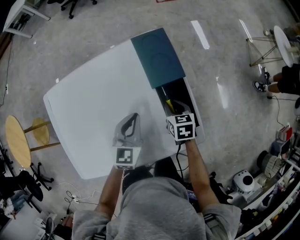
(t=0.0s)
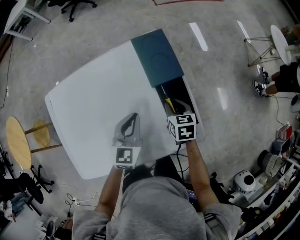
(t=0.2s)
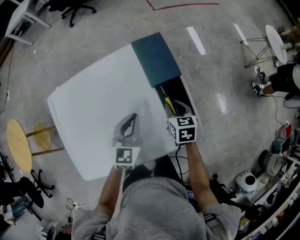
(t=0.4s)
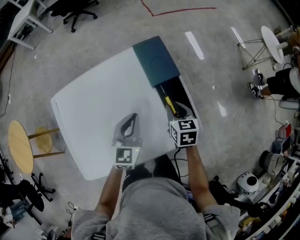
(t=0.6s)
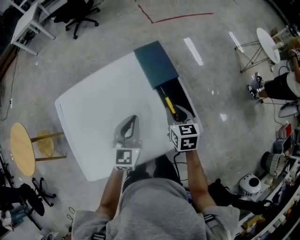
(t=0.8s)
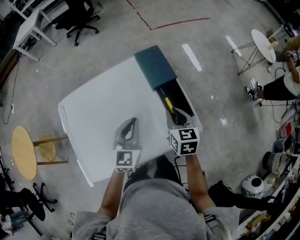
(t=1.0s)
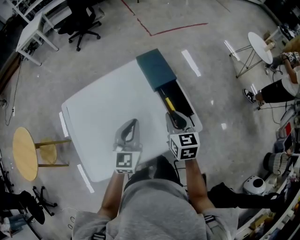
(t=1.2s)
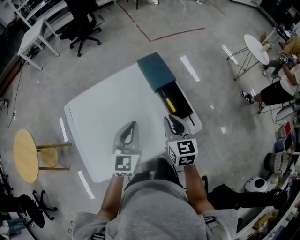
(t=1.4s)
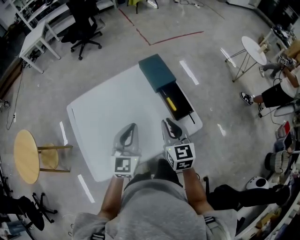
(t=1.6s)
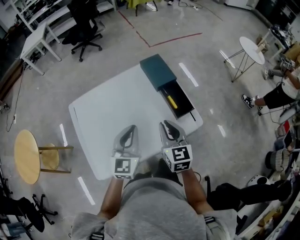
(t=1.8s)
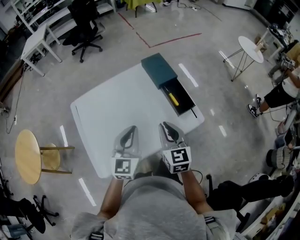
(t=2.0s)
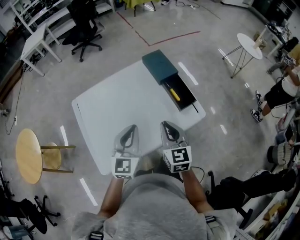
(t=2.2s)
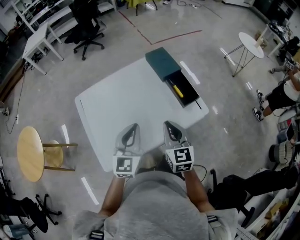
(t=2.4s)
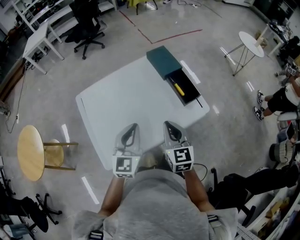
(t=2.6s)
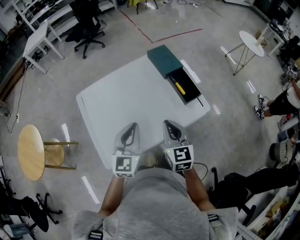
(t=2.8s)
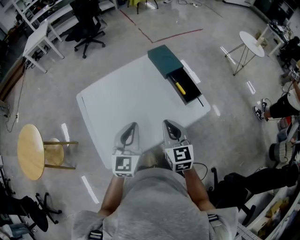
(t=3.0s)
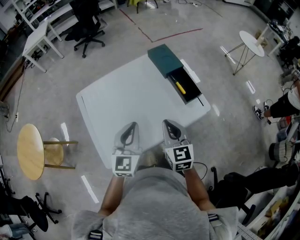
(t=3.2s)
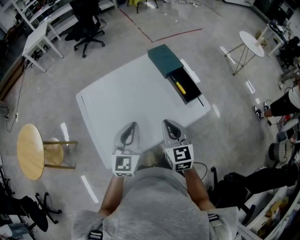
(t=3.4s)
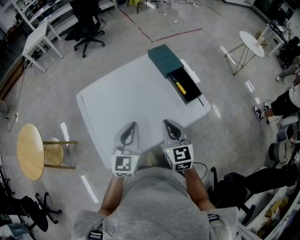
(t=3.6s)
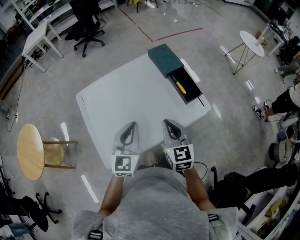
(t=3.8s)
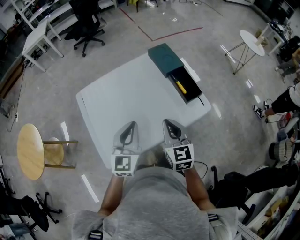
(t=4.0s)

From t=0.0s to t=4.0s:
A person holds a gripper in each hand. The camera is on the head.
From t=0.0s to t=1.4s: The grippers both shift upward and backward by some 25 cm. The right gripper changes its angle by about 30 degrees.
From t=1.4s to t=2.6s: The two grippers go some 15 cm backward and to the left.
From t=2.6s to t=4.0s: The grippers move only a little.

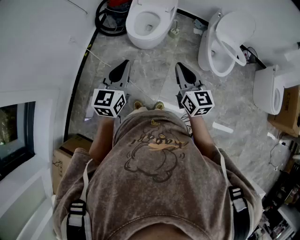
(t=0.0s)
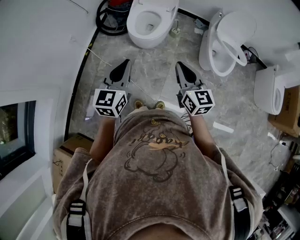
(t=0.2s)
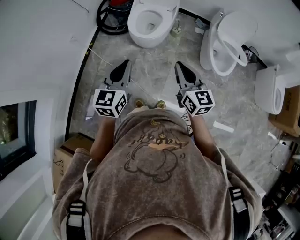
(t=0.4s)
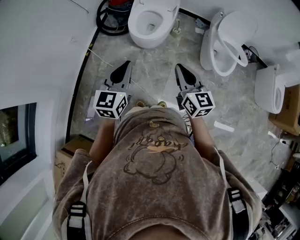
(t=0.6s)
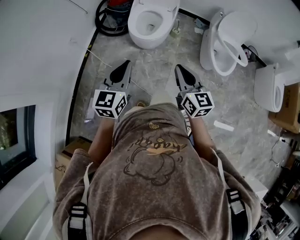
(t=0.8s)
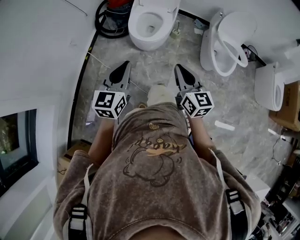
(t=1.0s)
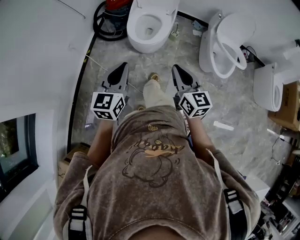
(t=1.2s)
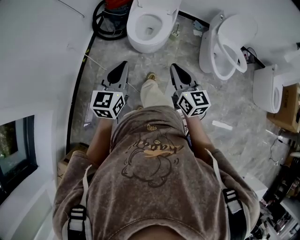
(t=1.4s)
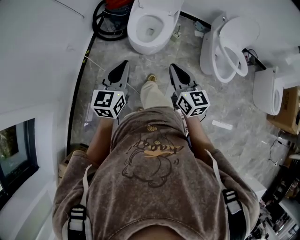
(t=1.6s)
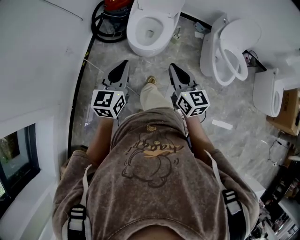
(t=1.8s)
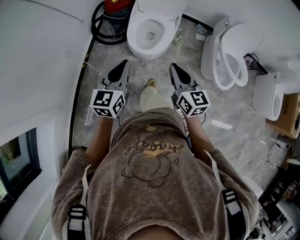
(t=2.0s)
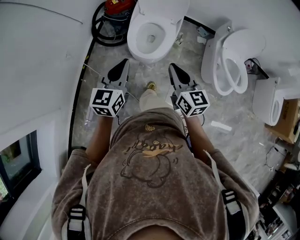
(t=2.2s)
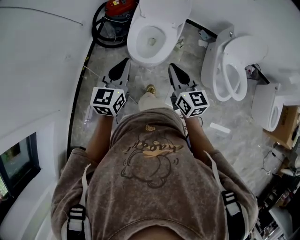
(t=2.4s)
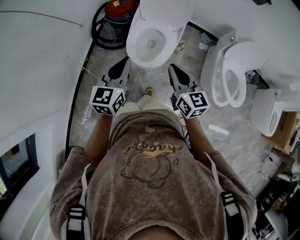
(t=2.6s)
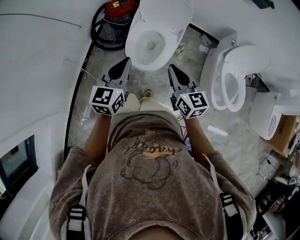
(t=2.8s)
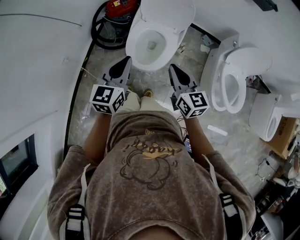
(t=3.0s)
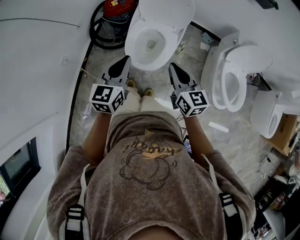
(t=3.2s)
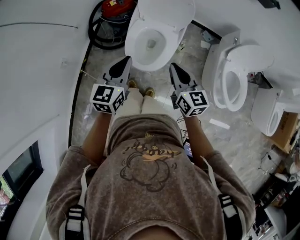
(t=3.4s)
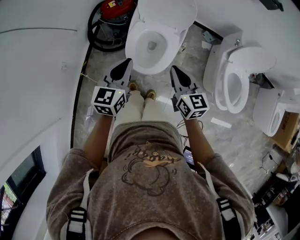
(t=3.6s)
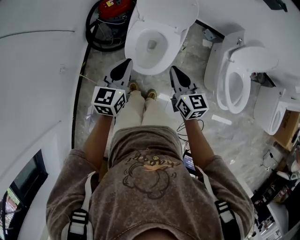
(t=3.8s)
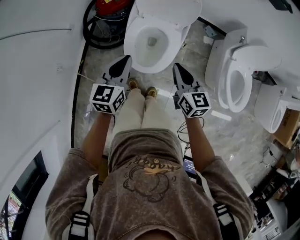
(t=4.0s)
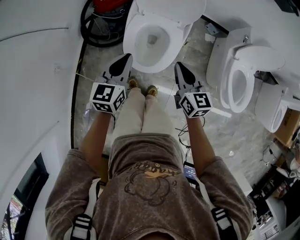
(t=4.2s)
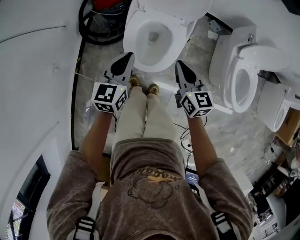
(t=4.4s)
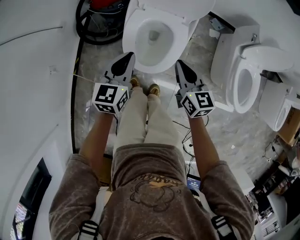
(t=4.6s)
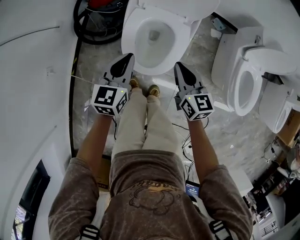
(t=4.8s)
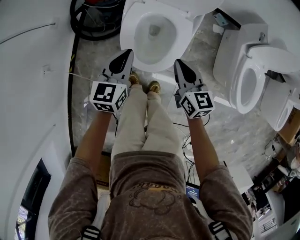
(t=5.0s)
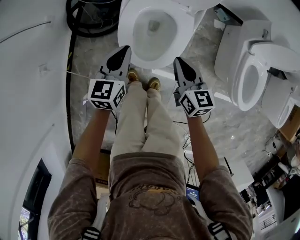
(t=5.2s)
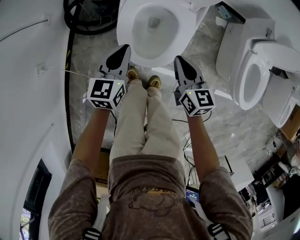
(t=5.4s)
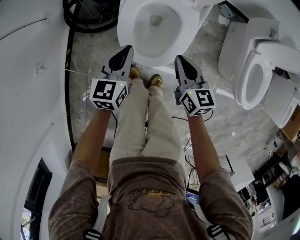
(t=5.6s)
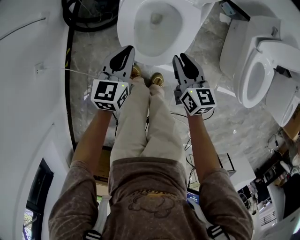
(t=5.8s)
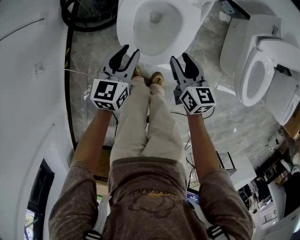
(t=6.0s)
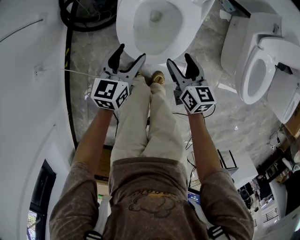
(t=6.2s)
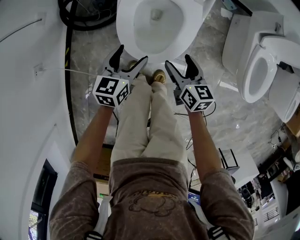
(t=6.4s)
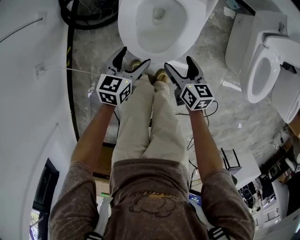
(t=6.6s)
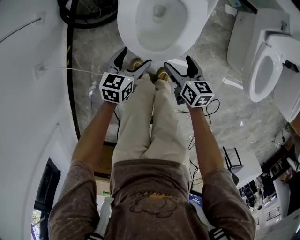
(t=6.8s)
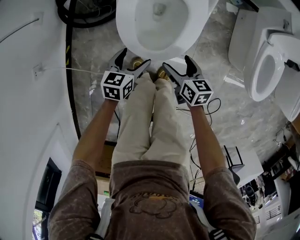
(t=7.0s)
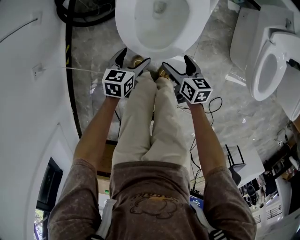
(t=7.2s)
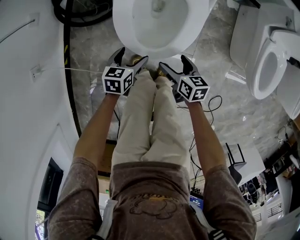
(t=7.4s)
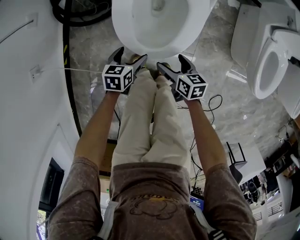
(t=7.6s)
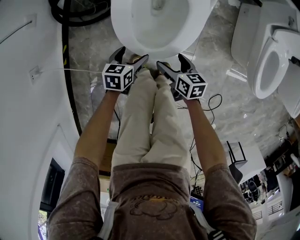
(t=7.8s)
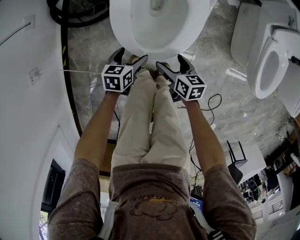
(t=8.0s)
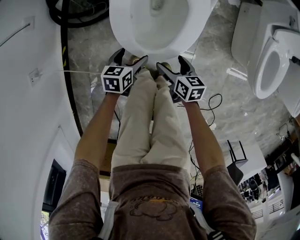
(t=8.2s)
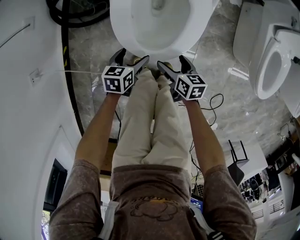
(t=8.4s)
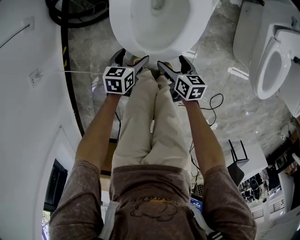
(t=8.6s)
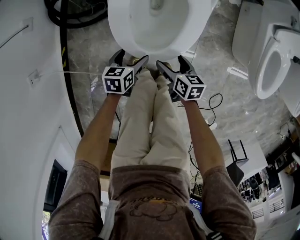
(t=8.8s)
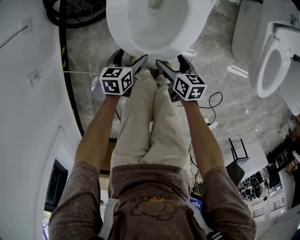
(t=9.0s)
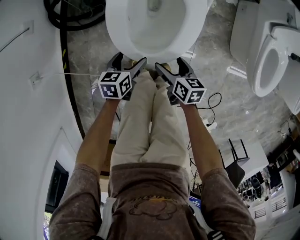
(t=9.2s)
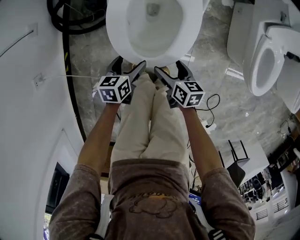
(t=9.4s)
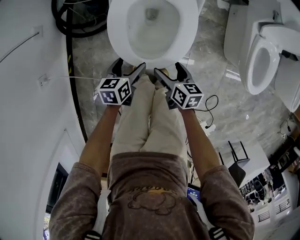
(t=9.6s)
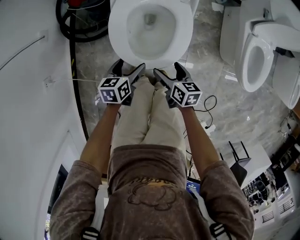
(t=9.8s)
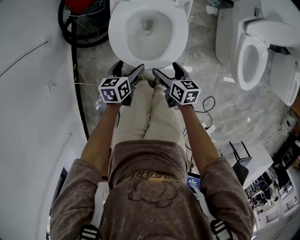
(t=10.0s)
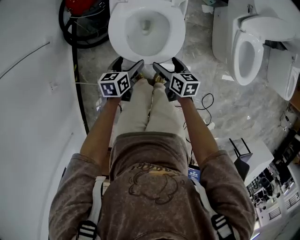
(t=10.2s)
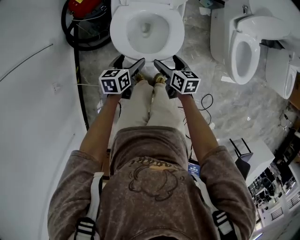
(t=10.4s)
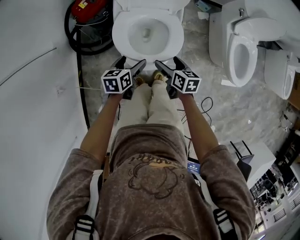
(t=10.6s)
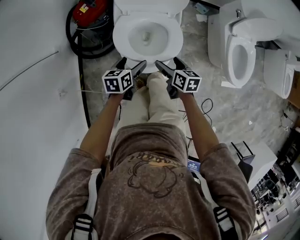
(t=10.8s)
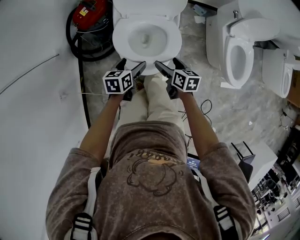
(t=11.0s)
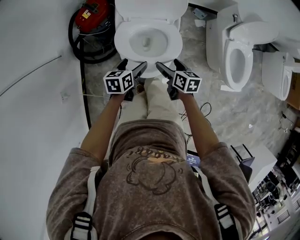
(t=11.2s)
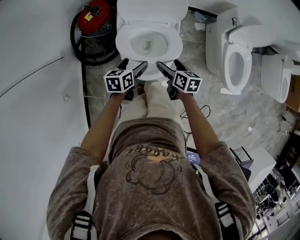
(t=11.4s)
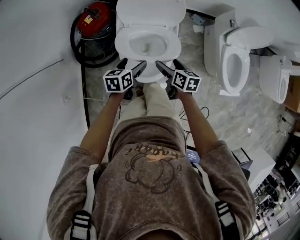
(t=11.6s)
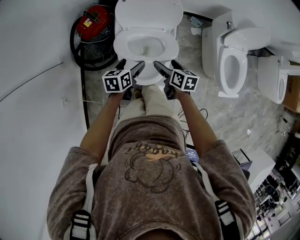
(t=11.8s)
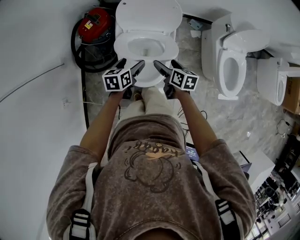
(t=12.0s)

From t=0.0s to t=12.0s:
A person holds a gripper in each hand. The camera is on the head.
From t=0.0s to t=1.6s: Both grippers move forward and to the left, some 10 cm.
From t=1.6s to t=3.0s: Both grippers move forward, about 25 cm.
From t=3.0s to t=4.4s: Both grippers move downward and forward, roughly 15 cm.
From t=4.4s to t=6.0s: Both grippers move downward, about 15 cm. The right gripper opens up.
From t=6.0s to t=7.6s: The right gripper moves downward and backward, about 20 cm, rotates about 20 degrees, and opens. The left gripper is displaced downward by roughly 20 cm, turns by approximately 30 degrees, and opens.
From t=7.6s to t=9.0s: There are only small adjustments of the grippers.
From t=9.0s to t=10.4s: Both grippers move upward, about 20 cm.
From t=10.4s to t=12.0s: The two grippers go about 15 cm forward and upward.

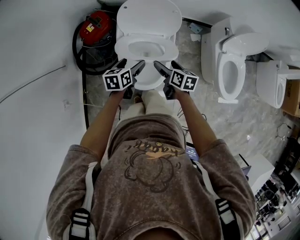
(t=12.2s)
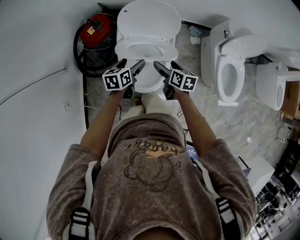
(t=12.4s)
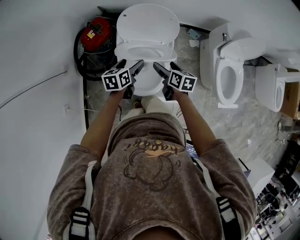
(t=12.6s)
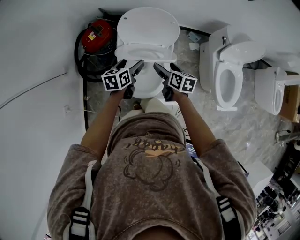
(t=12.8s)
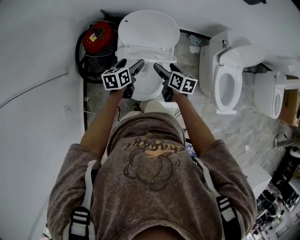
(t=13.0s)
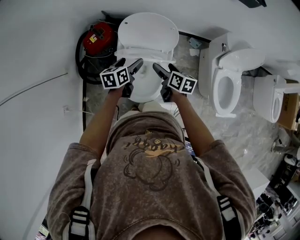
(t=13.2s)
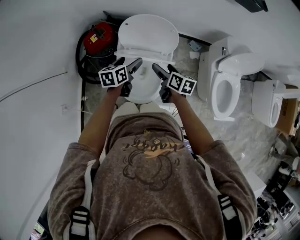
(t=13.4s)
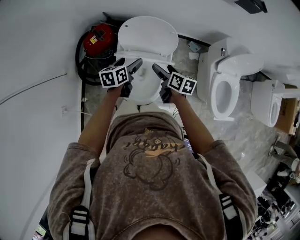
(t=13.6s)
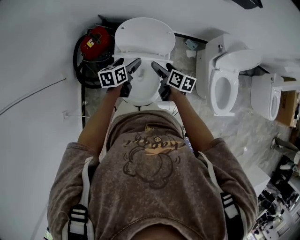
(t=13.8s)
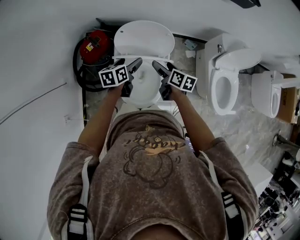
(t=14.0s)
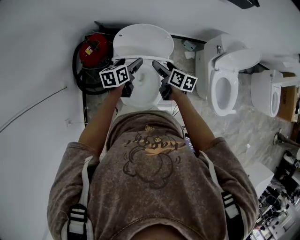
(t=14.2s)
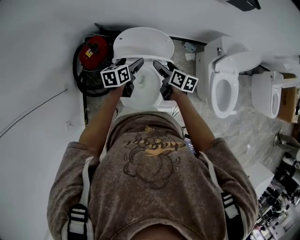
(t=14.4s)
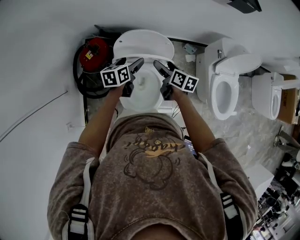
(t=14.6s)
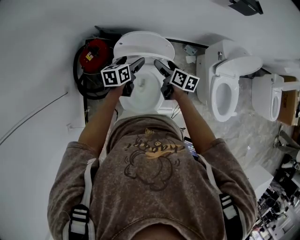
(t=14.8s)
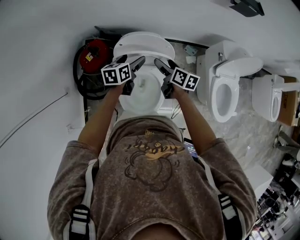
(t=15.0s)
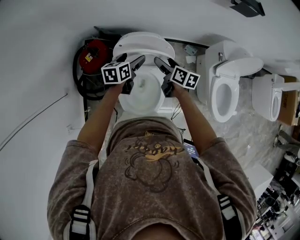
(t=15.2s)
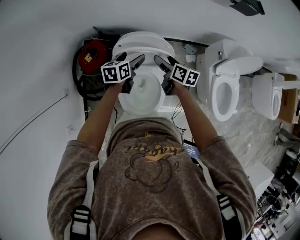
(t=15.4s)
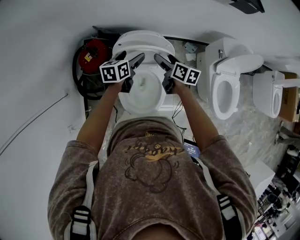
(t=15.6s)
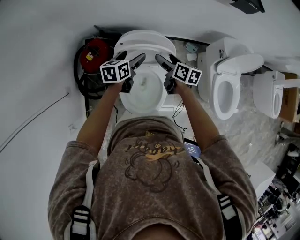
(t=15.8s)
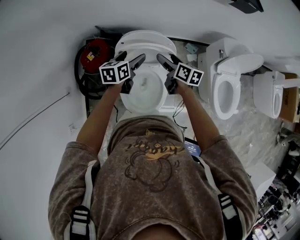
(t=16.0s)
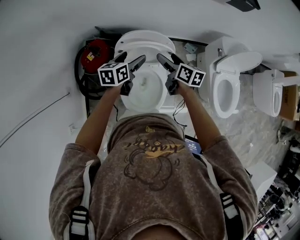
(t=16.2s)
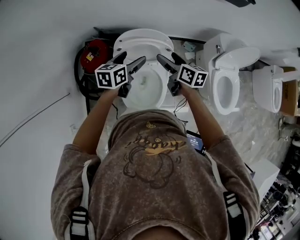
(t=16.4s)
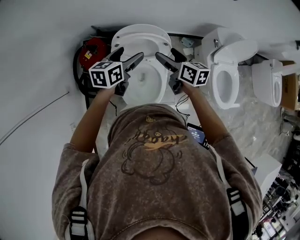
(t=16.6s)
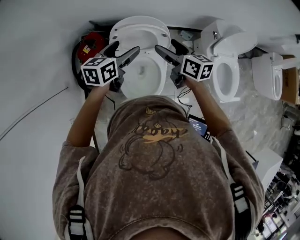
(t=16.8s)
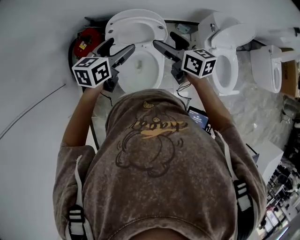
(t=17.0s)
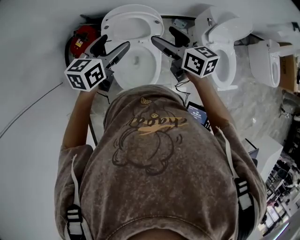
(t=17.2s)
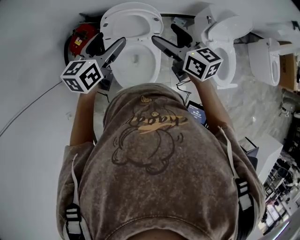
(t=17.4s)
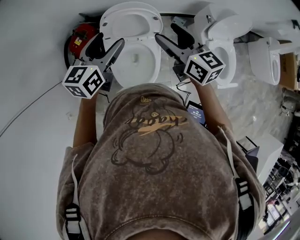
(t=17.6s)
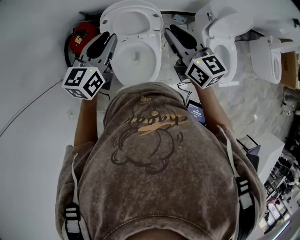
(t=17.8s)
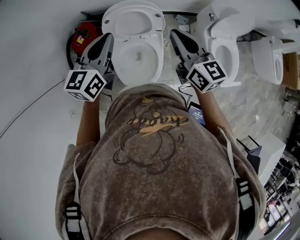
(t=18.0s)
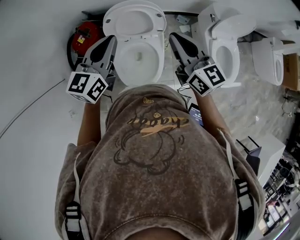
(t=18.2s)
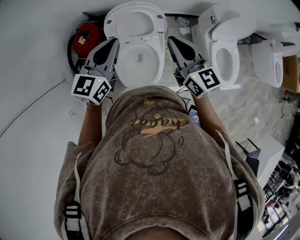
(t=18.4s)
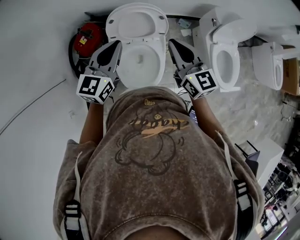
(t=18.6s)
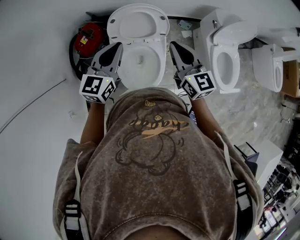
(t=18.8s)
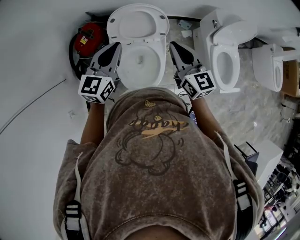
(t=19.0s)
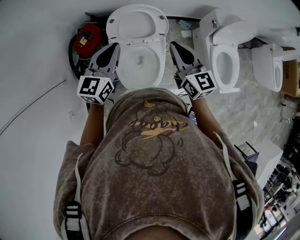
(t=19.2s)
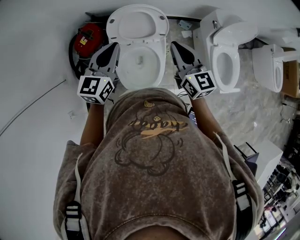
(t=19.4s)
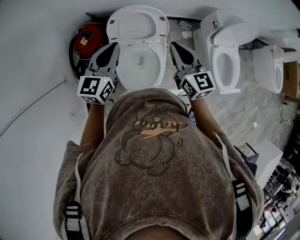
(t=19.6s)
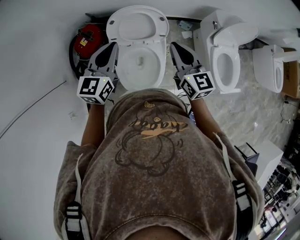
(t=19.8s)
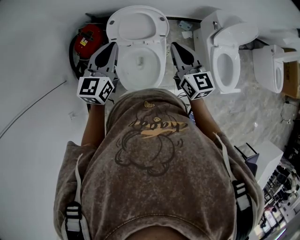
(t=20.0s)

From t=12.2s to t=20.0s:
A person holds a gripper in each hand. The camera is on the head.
From t=12.2s to t=13.8s: Both grippers travel together forward, approximately 10 cm.
From t=13.8s to t=15.4s: The two grippers go approximately 10 cm forward.
From t=15.4s to t=16.8s: Both grippers travel together upward and backward, some 15 cm.
From t=16.8s to t=18.4s: The two grippers go some 10 cm upward and backward. The left gripper swivels some 30 degrees, and closes. Meanwhile the right gripper rotates some 30 degrees, and closes.
From t=18.4s to t=20.0s: The right gripper moves downward, roughly 5 cm.
